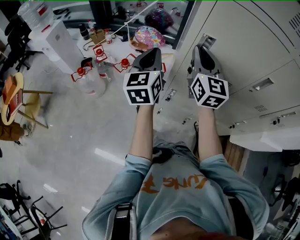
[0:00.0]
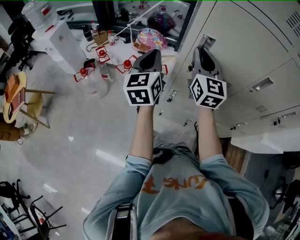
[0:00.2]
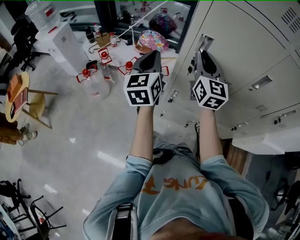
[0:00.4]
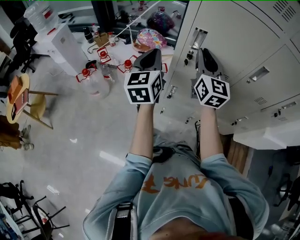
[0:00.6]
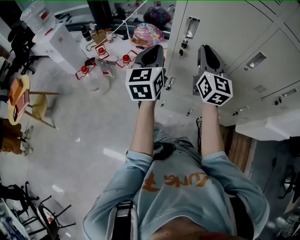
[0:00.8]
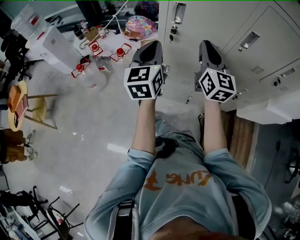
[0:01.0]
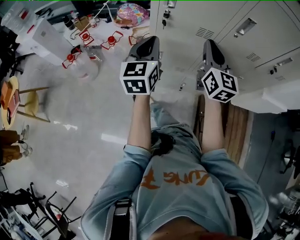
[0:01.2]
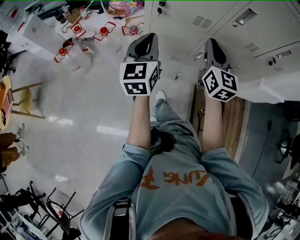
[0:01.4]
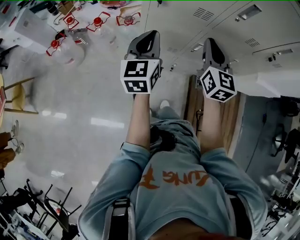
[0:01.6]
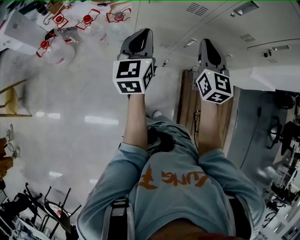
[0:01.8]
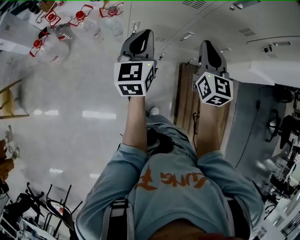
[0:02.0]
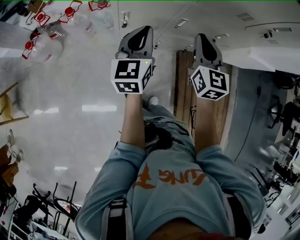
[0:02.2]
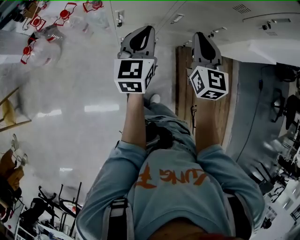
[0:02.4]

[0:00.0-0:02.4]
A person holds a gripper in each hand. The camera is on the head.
0:00.0 to 0:01.2: The right gripper is displaced to the right and backward by approximately 20 cm. Meanwhile the left gripper is displaced backward and to the right by roughly 15 cm.
0:01.2 to 0:02.4: The right gripper moves downward, to the right and backward, approximately 15 cm, and rotates roughly 20 degrees, while the left gripper shifts some 15 cm to the right and downward.

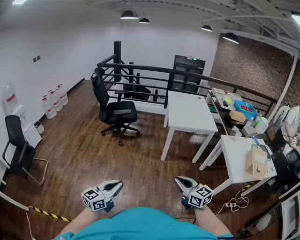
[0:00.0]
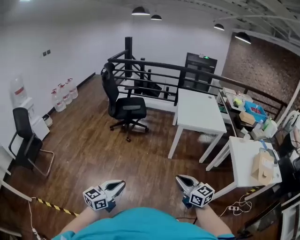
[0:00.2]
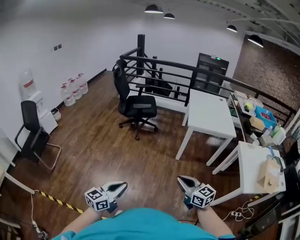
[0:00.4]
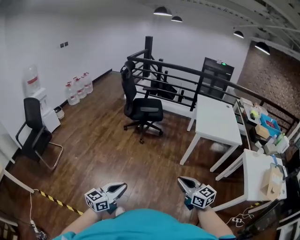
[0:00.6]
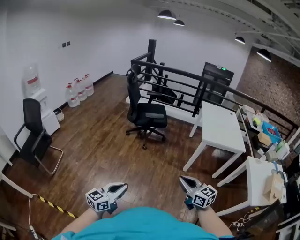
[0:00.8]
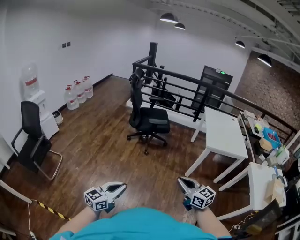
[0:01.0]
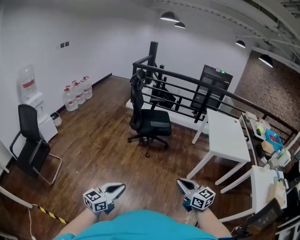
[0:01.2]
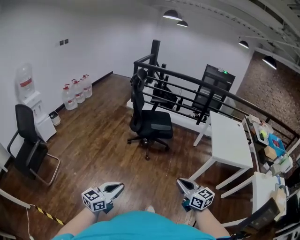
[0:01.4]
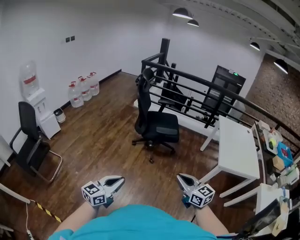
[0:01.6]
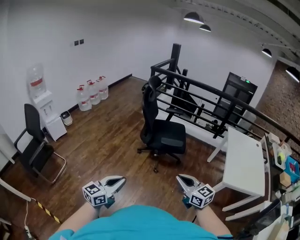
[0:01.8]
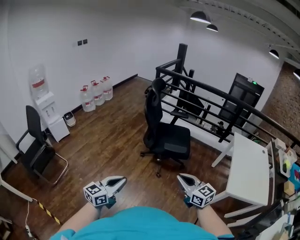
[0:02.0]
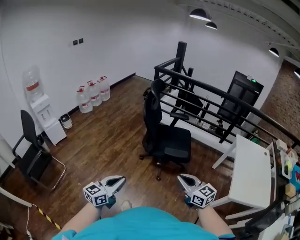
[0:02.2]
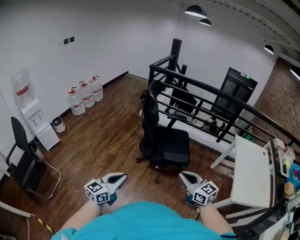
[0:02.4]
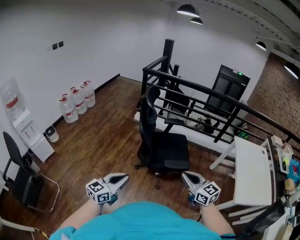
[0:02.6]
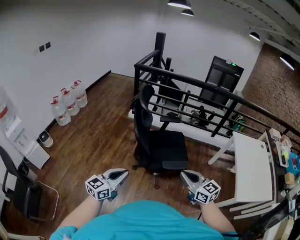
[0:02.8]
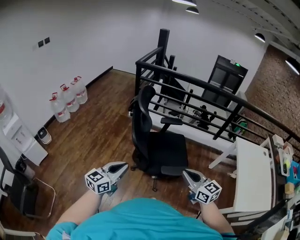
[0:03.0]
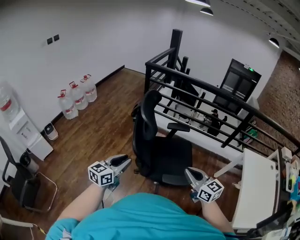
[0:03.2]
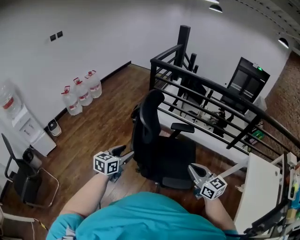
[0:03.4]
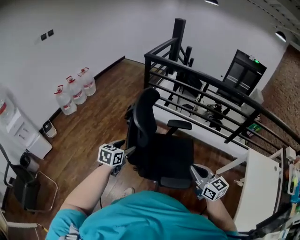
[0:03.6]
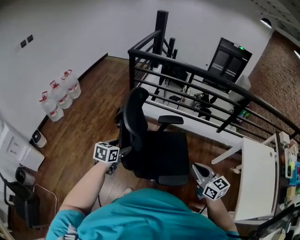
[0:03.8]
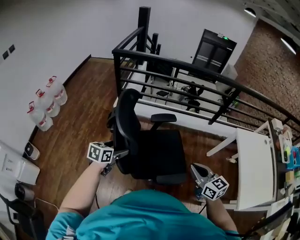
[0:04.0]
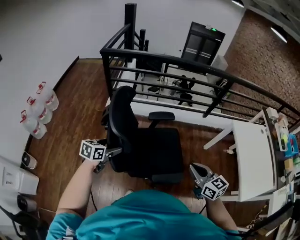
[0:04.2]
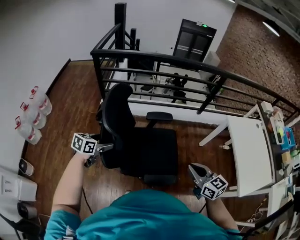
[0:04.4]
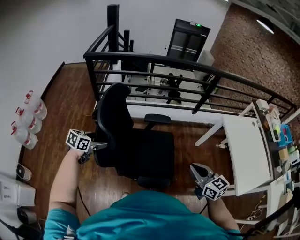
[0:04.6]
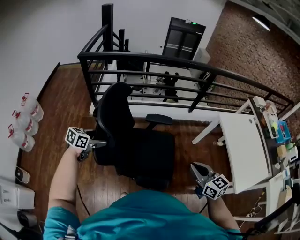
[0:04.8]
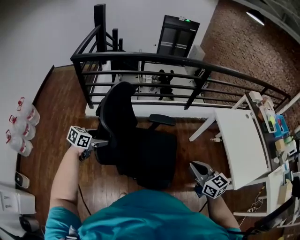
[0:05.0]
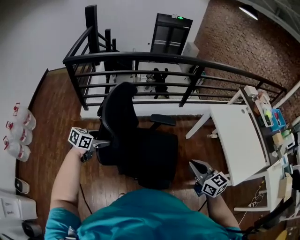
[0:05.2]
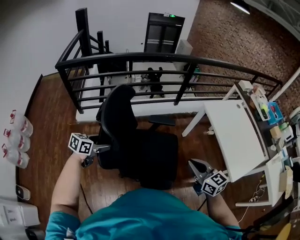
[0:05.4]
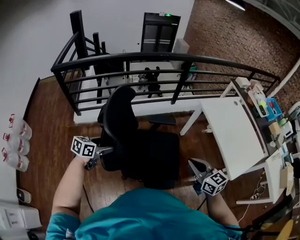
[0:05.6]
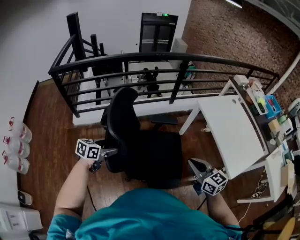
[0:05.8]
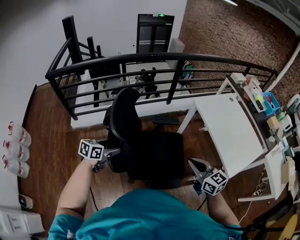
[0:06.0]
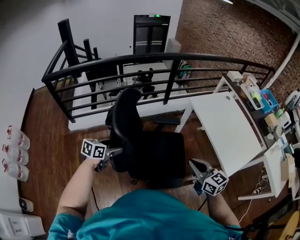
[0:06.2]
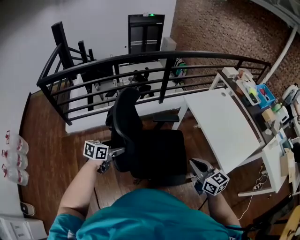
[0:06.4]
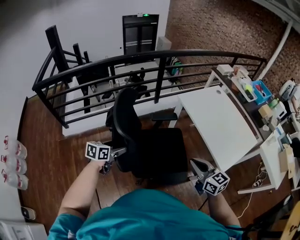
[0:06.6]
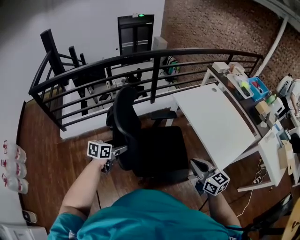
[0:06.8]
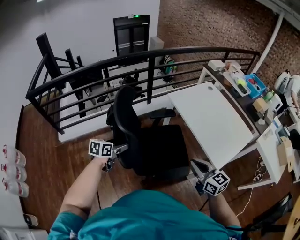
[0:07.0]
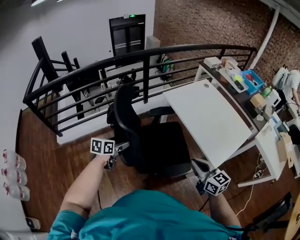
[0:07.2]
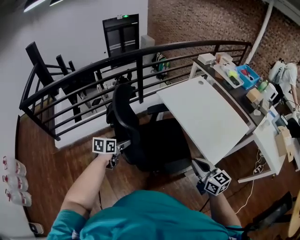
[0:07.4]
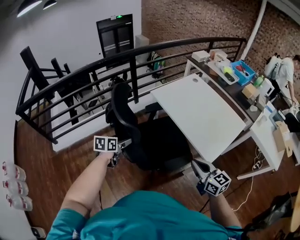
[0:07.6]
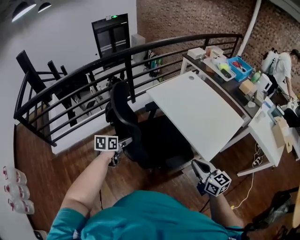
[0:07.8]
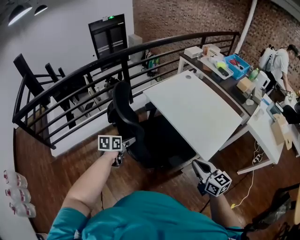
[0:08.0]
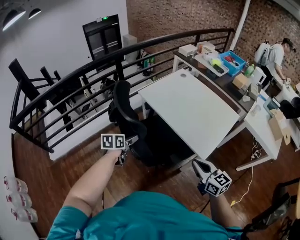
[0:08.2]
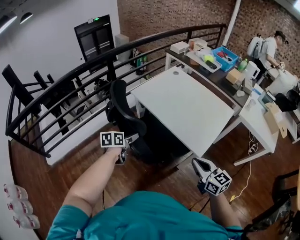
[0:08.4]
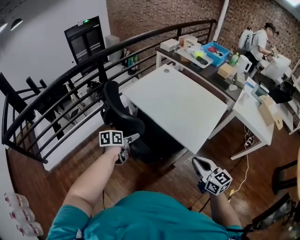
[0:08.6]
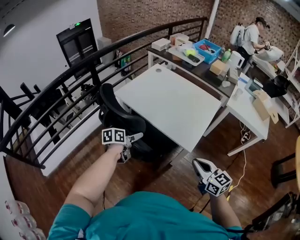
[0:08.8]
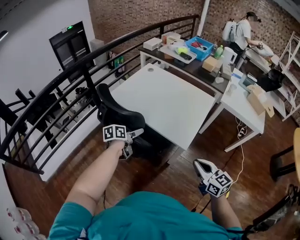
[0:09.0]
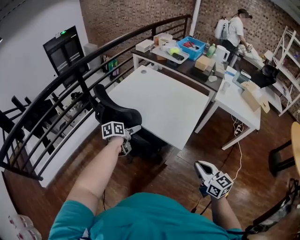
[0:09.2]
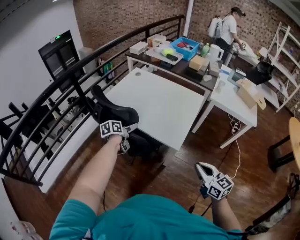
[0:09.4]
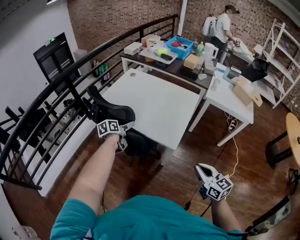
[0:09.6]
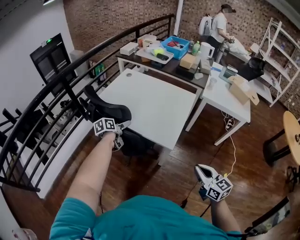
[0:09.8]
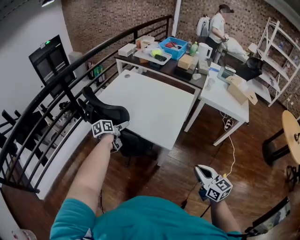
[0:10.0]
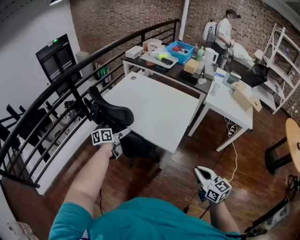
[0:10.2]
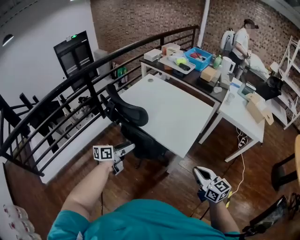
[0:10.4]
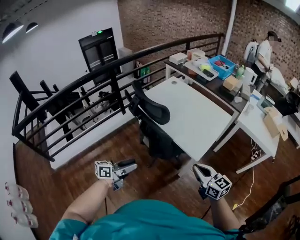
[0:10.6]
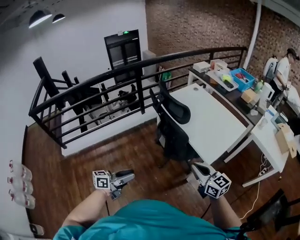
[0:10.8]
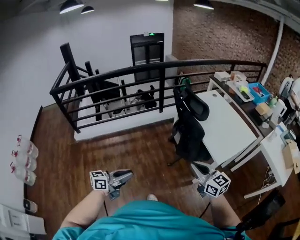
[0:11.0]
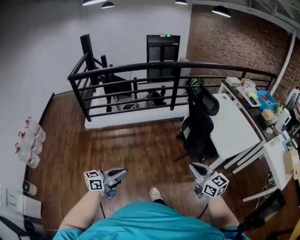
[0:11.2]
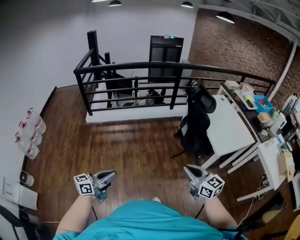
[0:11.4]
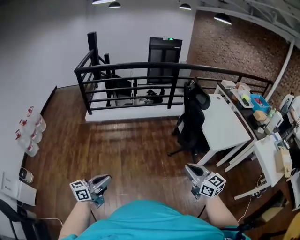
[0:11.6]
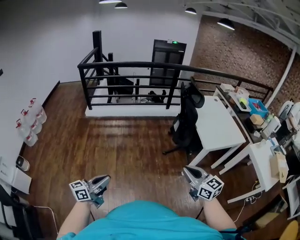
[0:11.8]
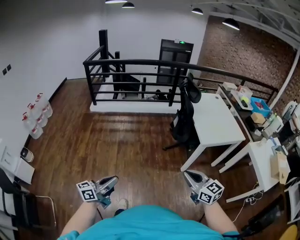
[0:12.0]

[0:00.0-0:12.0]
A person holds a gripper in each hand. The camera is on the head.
0:00.0 to 0:01.6: Both grippers are carried forward and to the left, roughly 50 cm.
0:01.6 to 0:03.0: The pair of grippers is taken forward, about 60 cm.
0:03.0 to 0:04.4: The left gripper ends up some 40 cm from where it was, tilts its fingers roughly 30 degrees downward, and opens up; the right gripper ends up roughly 25 cm from where it was.
0:04.4 to 0:06.0: Both grippers move to the right, about 20 cm.
0:06.0 to 0:07.6: The left gripper travels to the right and forward by approximately 30 cm. Meanwhile the right gripper shifts approximately 25 cm to the right.
0:07.6 to 0:09.0: The left gripper shifts approximately 25 cm to the right, and swivels roughly 20 degrees. Meanwhile the right gripper travels to the right by roughly 15 cm.
0:09.0 to 0:10.4: The left gripper is displaced backward and upward by roughly 10 cm, rotates approximately 30 degrees, and closes up.
0:10.4 to 0:12.0: The two grippers travel together, some 60 cm. The left gripper swivels approximately 50 degrees, and closes up; the right gripper changes its angle by approximately 50 degrees.

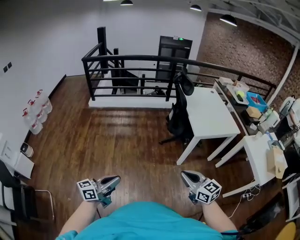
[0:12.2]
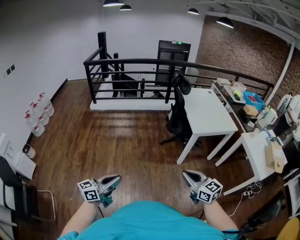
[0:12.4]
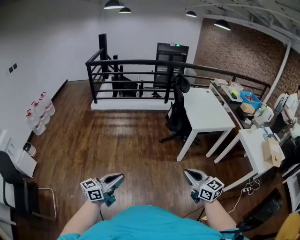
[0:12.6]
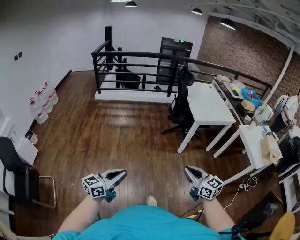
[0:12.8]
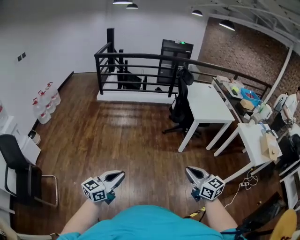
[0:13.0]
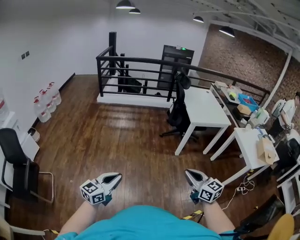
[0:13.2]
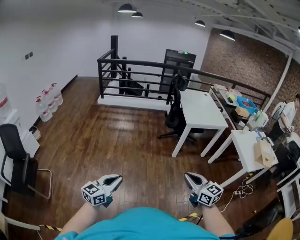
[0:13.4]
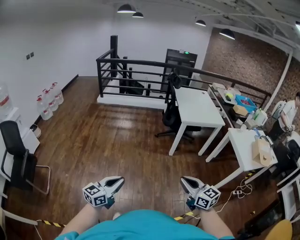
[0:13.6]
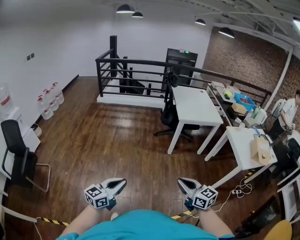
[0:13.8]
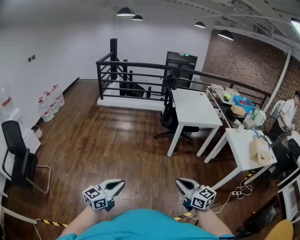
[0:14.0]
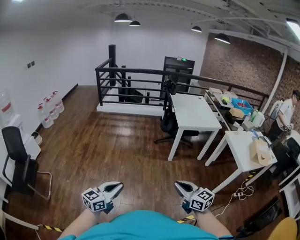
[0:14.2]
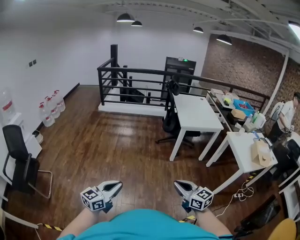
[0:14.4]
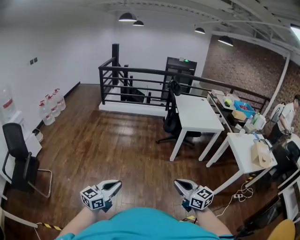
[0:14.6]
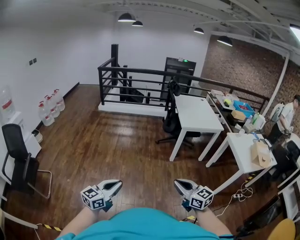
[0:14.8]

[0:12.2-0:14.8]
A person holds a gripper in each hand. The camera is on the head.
0:12.2 to 0:13.4: The grippers both shift backward by some 40 cm. The left gripper rotates roughly 30 degrees.
0:13.4 to 0:14.8: The left gripper travels backward and to the right by approximately 10 cm; the right gripper goes some 10 cm backward, and moves about 10 cm to the right and comes back.

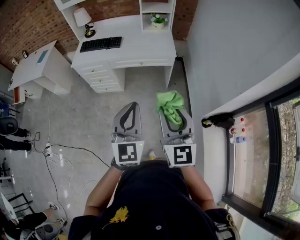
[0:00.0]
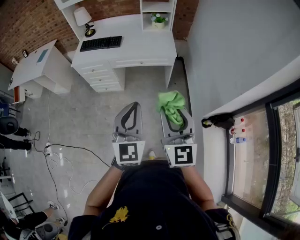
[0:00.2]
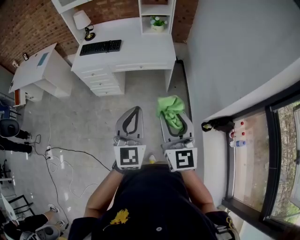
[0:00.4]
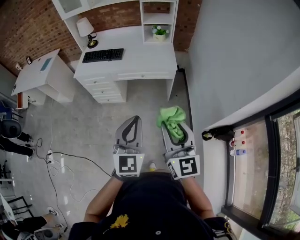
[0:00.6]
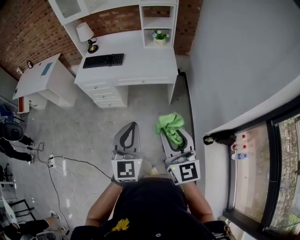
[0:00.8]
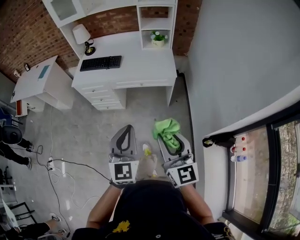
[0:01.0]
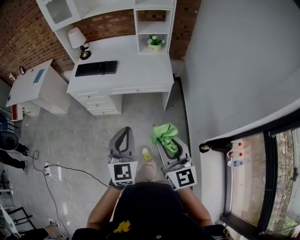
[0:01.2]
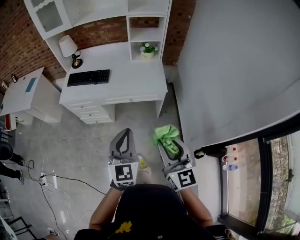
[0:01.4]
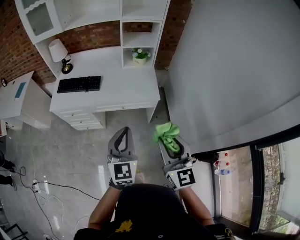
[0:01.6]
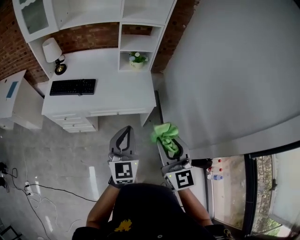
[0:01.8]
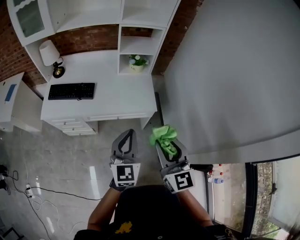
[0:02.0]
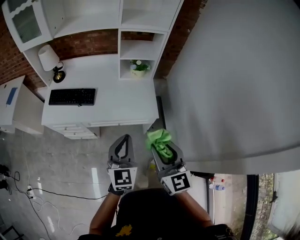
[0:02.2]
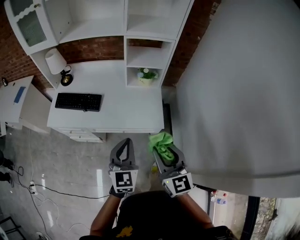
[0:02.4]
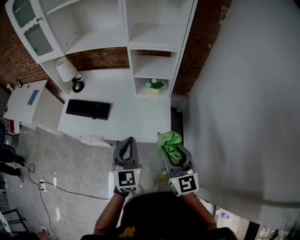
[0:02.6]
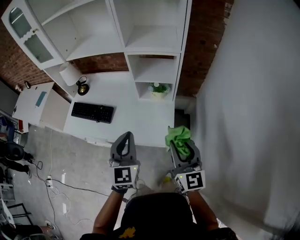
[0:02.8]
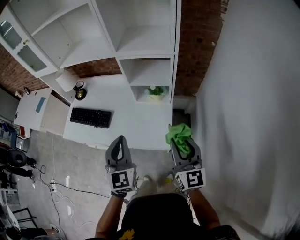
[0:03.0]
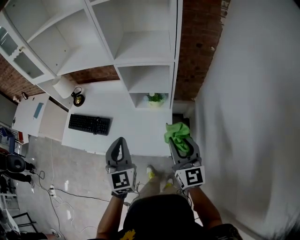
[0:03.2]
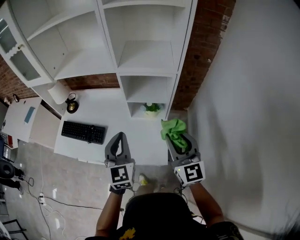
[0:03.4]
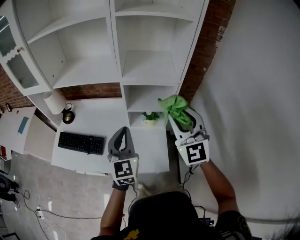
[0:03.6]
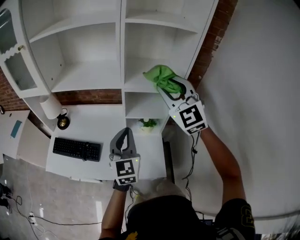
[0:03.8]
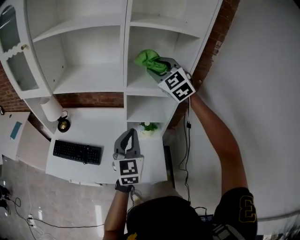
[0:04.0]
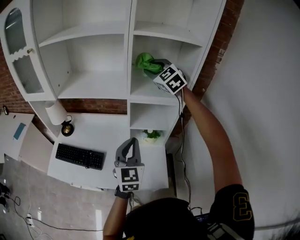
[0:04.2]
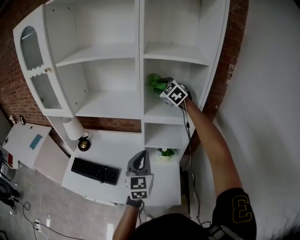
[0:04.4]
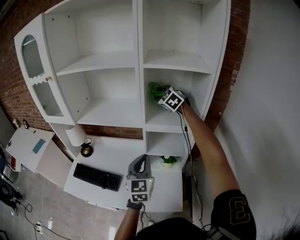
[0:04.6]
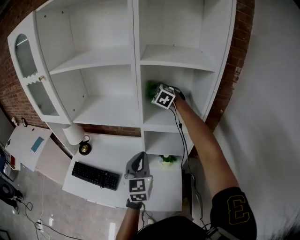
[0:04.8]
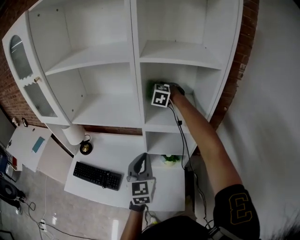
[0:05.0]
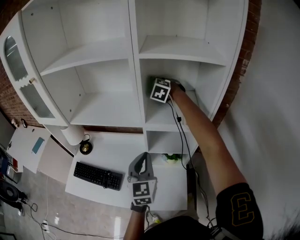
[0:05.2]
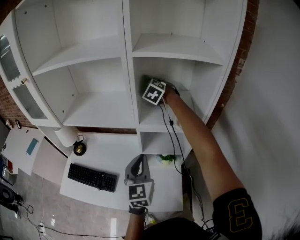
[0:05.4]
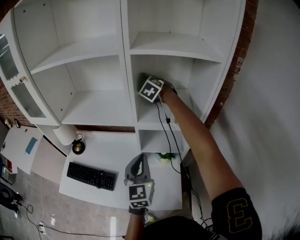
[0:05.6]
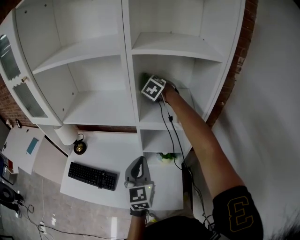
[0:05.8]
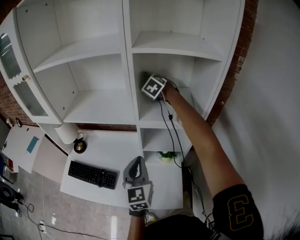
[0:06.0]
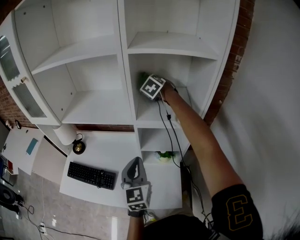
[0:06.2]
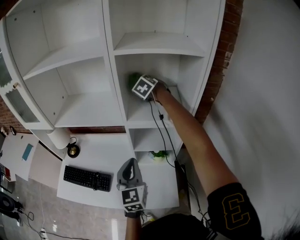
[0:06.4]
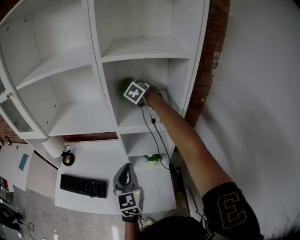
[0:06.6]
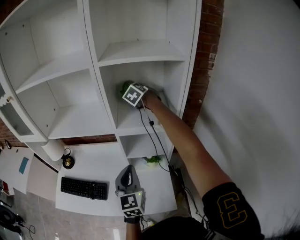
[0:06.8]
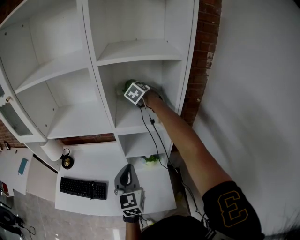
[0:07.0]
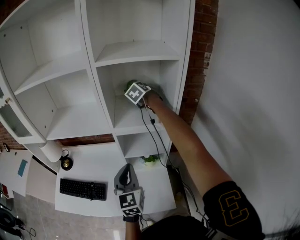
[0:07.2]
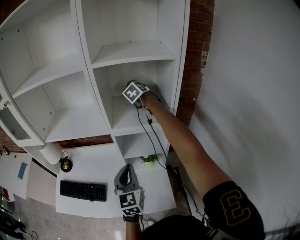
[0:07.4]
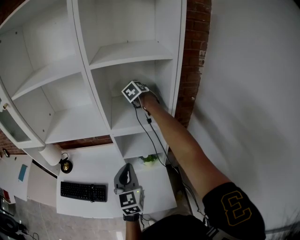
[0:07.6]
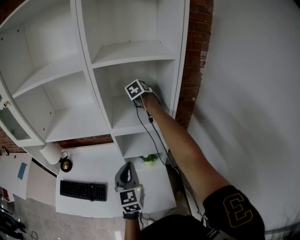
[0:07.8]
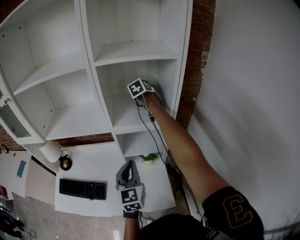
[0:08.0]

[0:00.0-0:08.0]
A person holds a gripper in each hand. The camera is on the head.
0:00.0 to 0:01.6: Both grippers travel together forward, roughly 25 cm.
0:01.6 to 0:03.2: The right gripper heads forward and to the right, covering roughly 50 cm; the left gripper heads forward, covering some 35 cm.
0:03.2 to 0:04.8: The left gripper moves forward, roughly 20 cm. Meanwhile the right gripper heads forward, covering some 50 cm, and rotates around the line of its fingers by approximately 60 degrees, counterclockwise from behind.
0:04.8 to 0:06.4: The right gripper shifts by approximately 5 cm, and turns by approximately 20 degrees.
0:06.4 to 0:08.0: The right gripper shifts some 15 cm to the right, and changes its angle by roughly 40 degrees.
